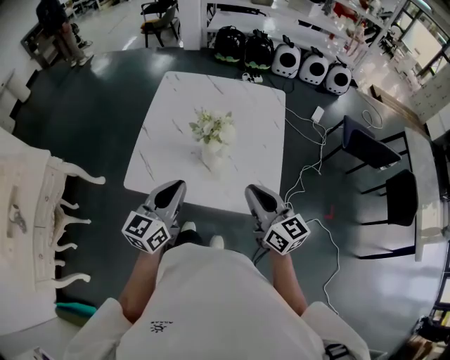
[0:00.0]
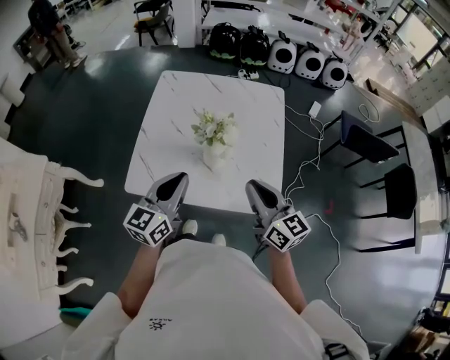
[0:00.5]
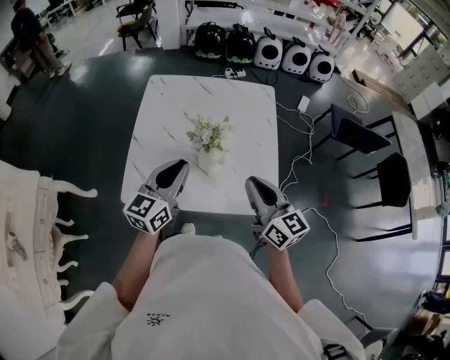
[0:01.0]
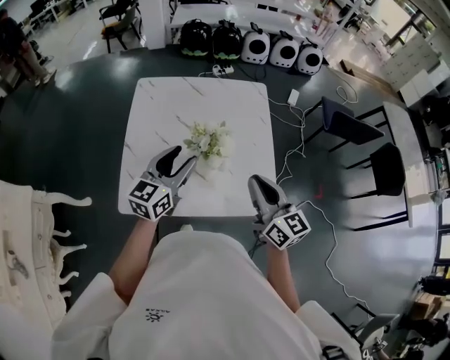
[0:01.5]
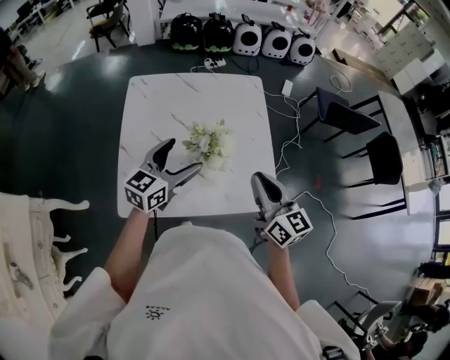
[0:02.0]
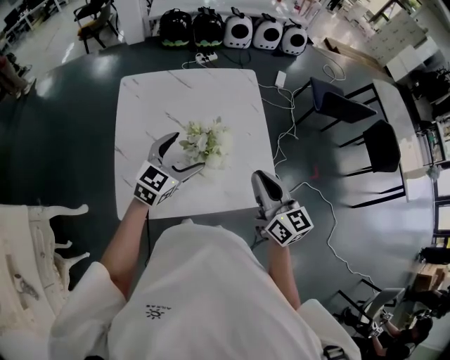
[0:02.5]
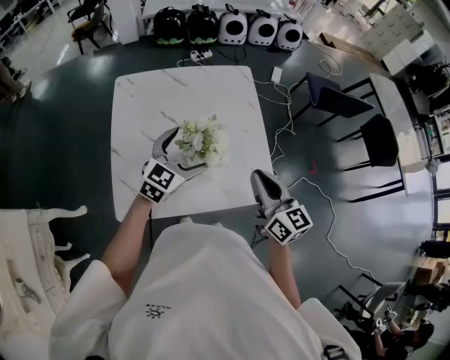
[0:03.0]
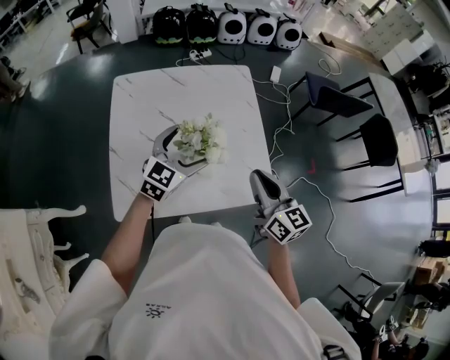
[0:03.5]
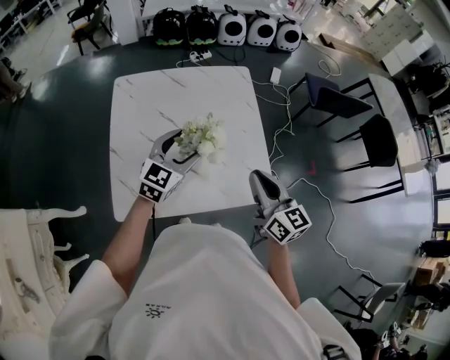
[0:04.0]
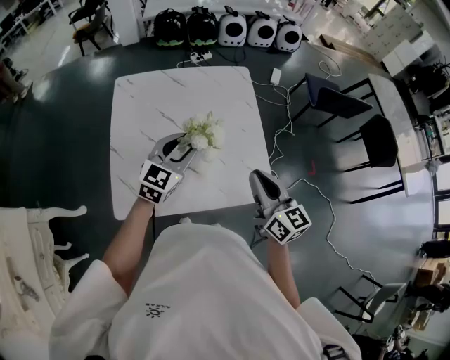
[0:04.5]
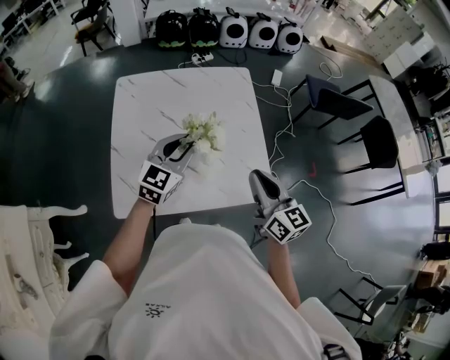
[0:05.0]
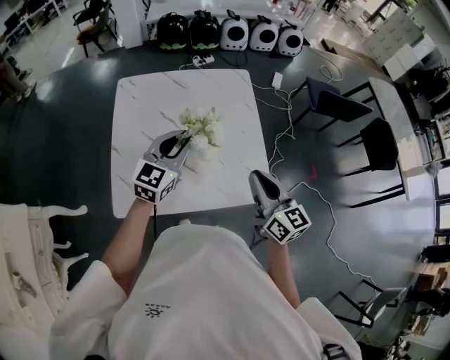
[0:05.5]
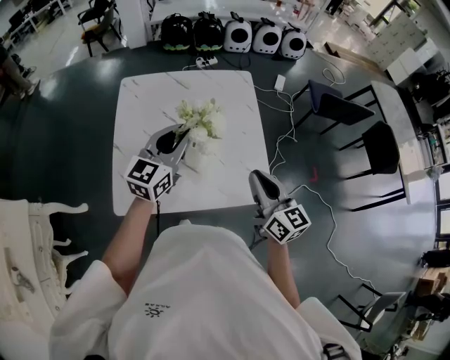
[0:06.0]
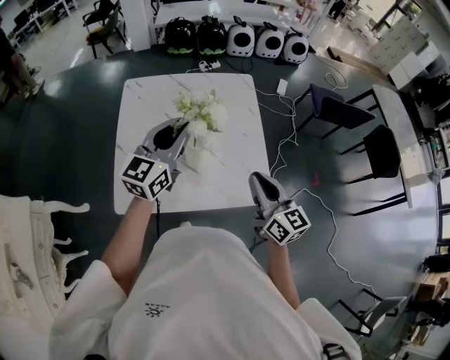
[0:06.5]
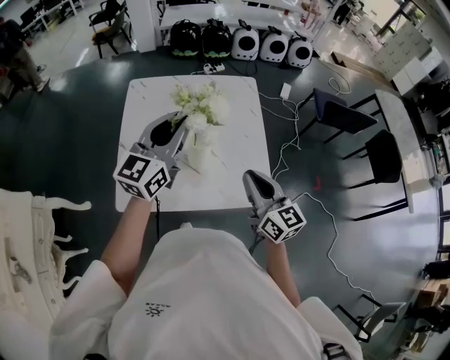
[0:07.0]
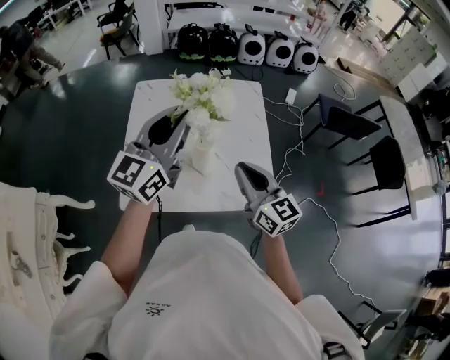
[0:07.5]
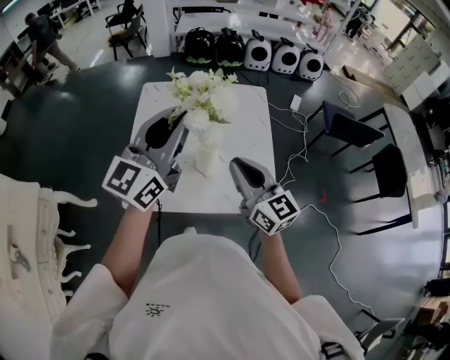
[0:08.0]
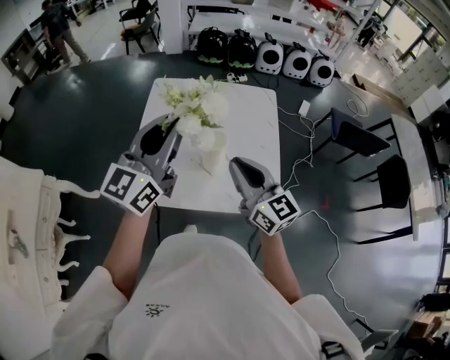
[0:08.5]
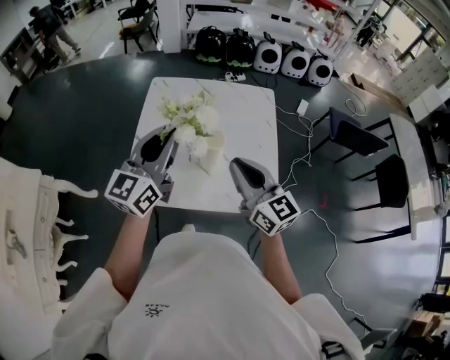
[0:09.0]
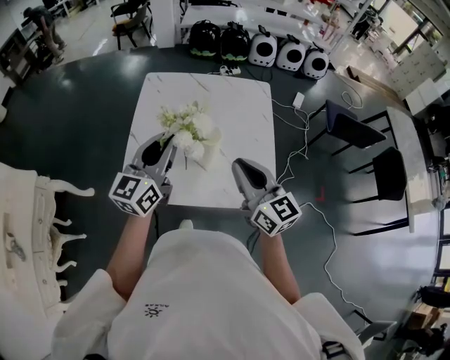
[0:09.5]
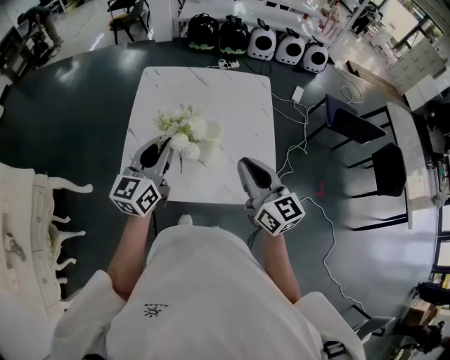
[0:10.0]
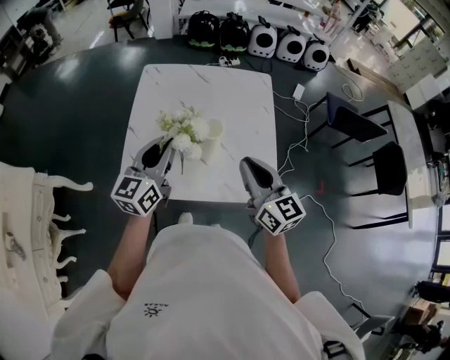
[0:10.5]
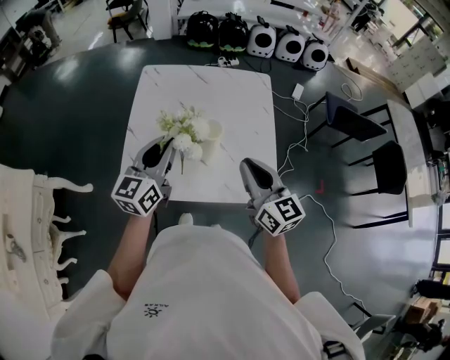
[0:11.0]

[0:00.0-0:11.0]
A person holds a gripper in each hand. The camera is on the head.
0:00.0 to 0:02.0: The right gripper travels forward by approximately 5 cm, and changes its angle by approximately 20 degrees. The left gripper travels forward by roughly 15 cm, turns by some 30 degrees, and opens its fingers.
0:02.0 to 0:03.5: The left gripper changes place by about 5 cm, and turns by about 20 degrees.
0:03.5 to 0:05.5: The left gripper ends up about 5 cm from where it was, and closes.
0:05.5 to 0:07.5: The right gripper moves to the left, about 5 cm; the left gripper travels upward by approximately 15 cm, and rotates approximately 20 degrees.
0:07.5 to 0:09.0: The left gripper heads to the left, covering roughly 5 cm.
0:09.0 to 0:11.0: The right gripper ends up roughly 5 cm from where it was, while the left gripper moves downward, some 10 cm.

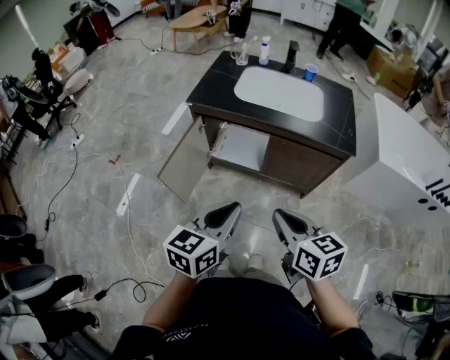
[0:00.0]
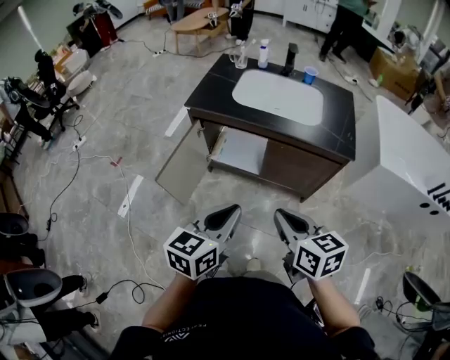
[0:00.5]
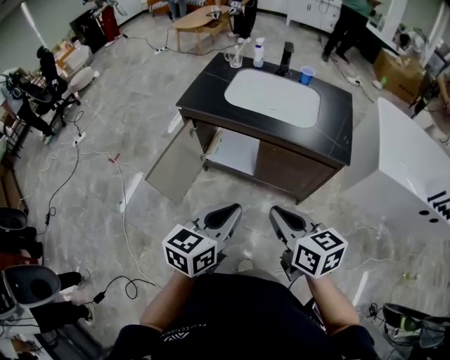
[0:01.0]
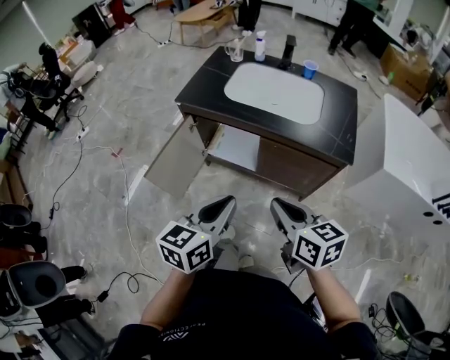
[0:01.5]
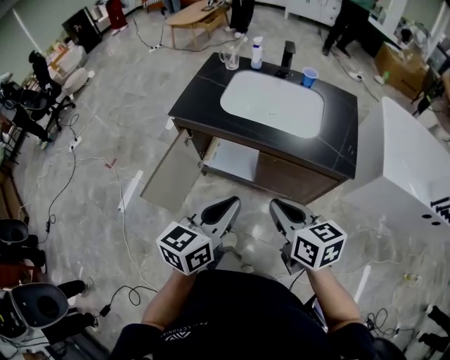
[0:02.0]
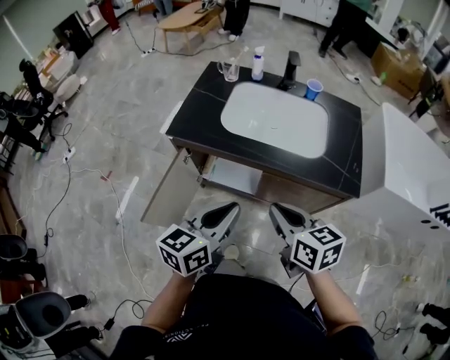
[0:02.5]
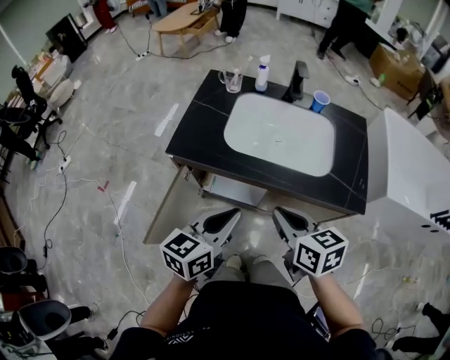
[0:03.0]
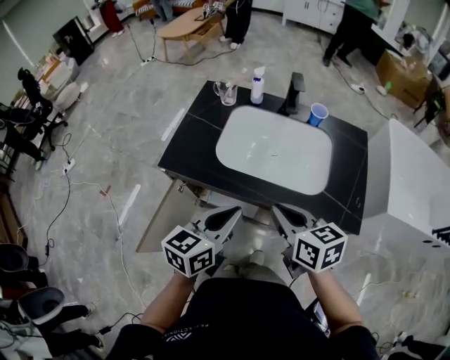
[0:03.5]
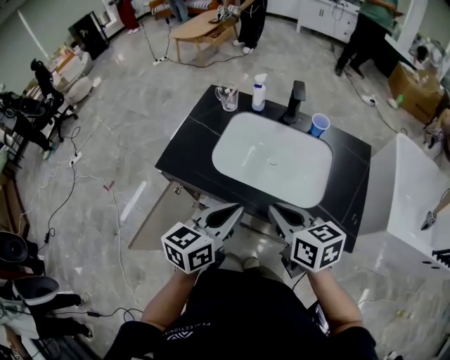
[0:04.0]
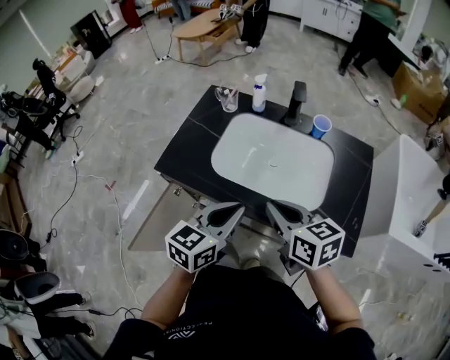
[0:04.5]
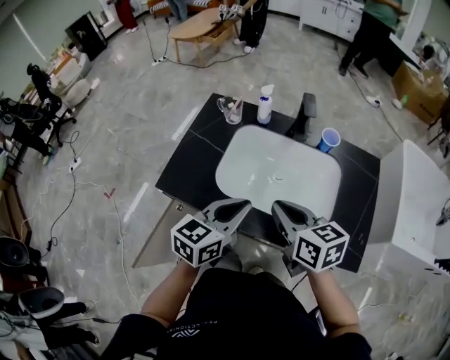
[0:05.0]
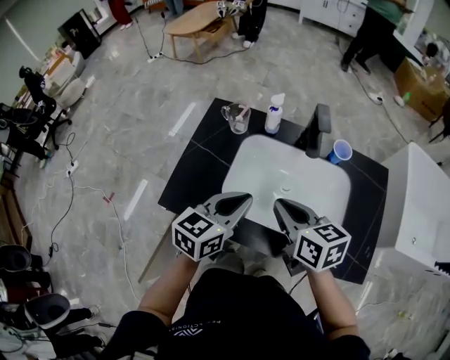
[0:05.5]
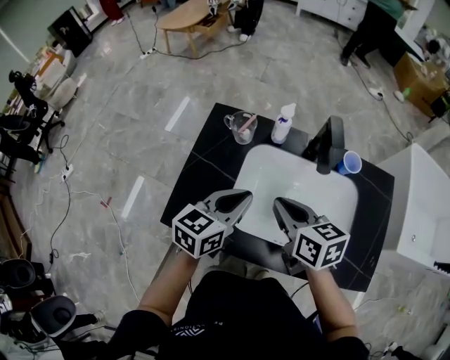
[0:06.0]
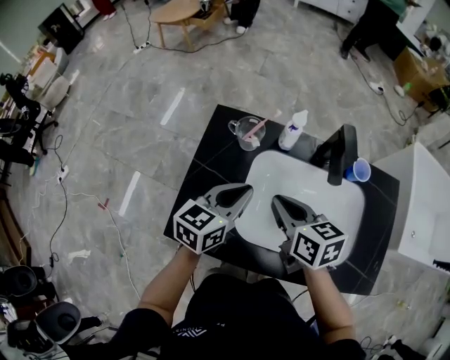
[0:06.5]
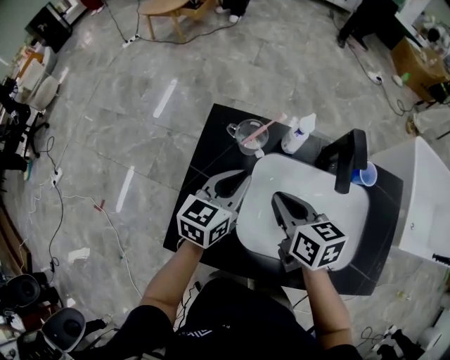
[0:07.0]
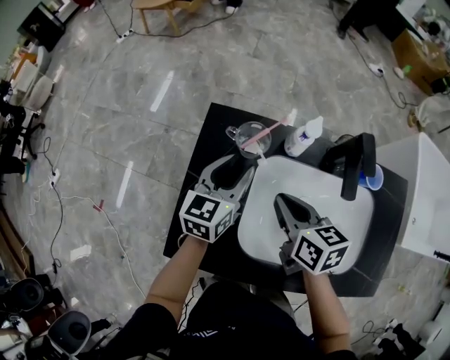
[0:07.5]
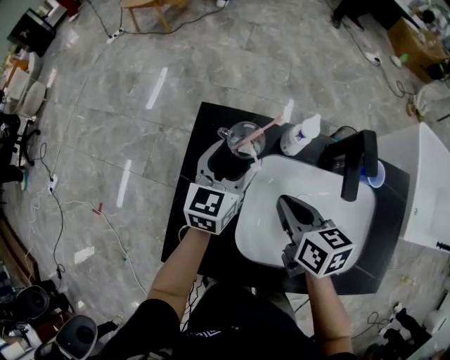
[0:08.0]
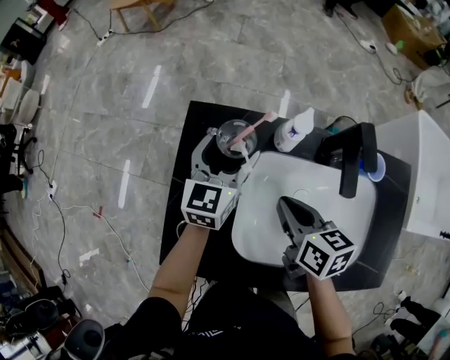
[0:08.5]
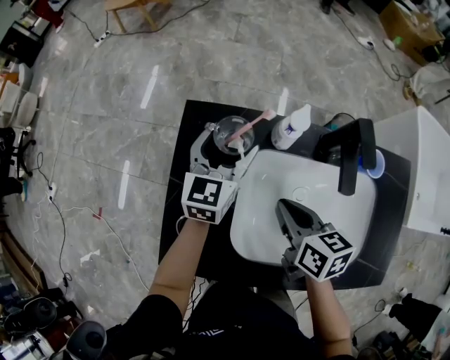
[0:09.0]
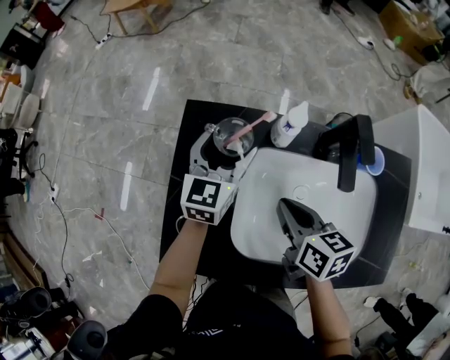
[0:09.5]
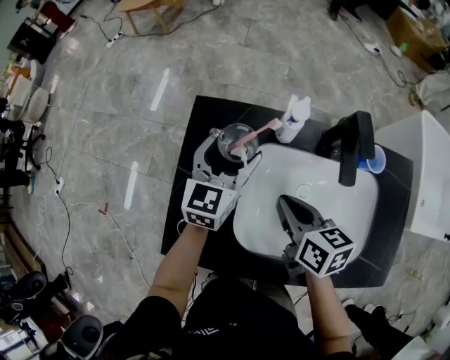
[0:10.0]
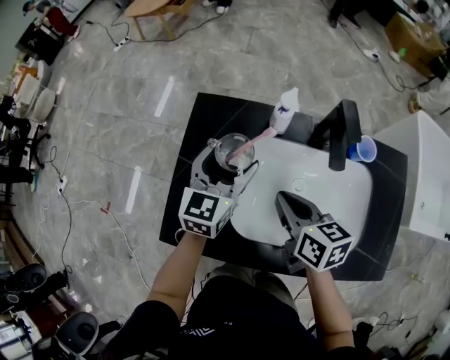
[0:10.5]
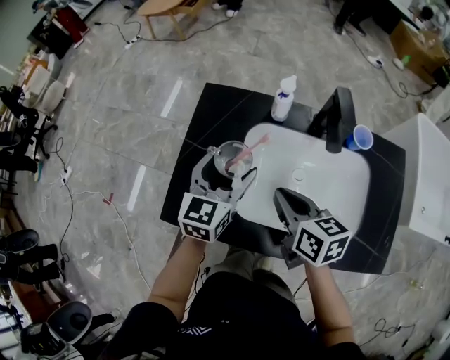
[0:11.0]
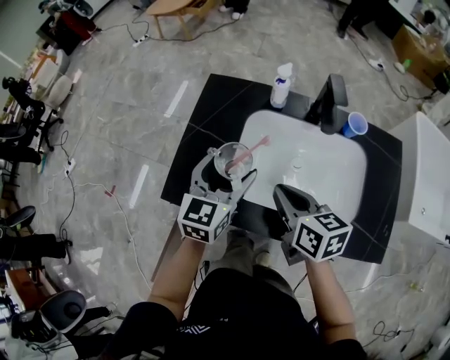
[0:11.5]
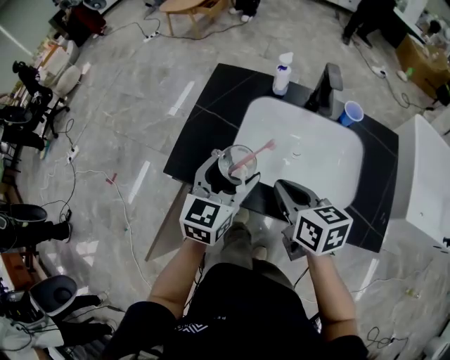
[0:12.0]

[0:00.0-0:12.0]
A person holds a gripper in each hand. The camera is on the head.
0:00.0 to 0:02.0: The grippers both shift forward and to the right by some 15 cm.
0:02.0 to 0:04.0: Both grippers travel together forward, roughly 25 cm.
0:04.0 to 0:06.0: Both grippers travel together forward, approximately 20 cm.
0:06.0 to 0:08.0: The right gripper moves forward and downward, some 10 cm, while the left gripper travels forward by approximately 20 cm, and opens its fingers.
0:08.0 to 0:10.0: The grippers make only small movements.
0:10.0 to 0:12.0: The right gripper moves backward, about 20 cm; the left gripper travels backward by approximately 25 cm.

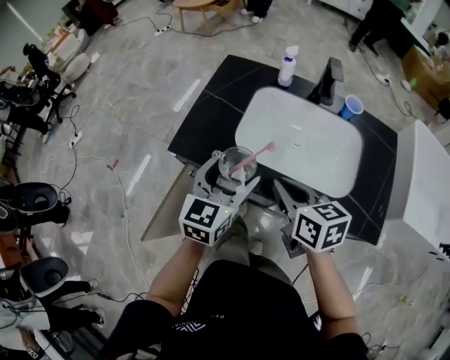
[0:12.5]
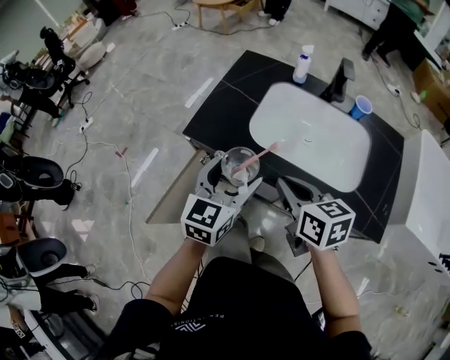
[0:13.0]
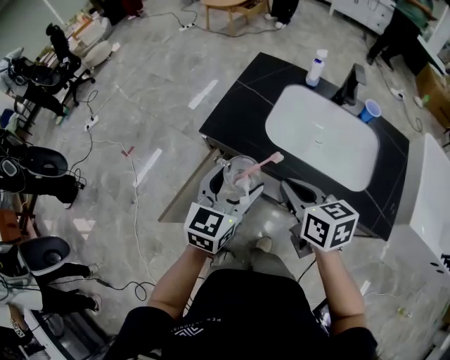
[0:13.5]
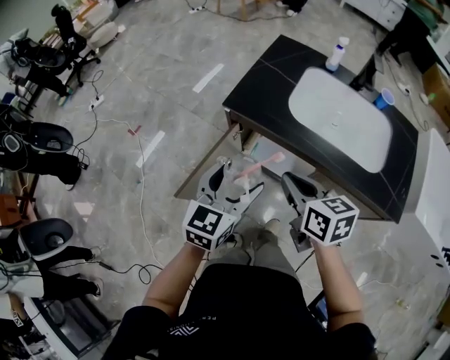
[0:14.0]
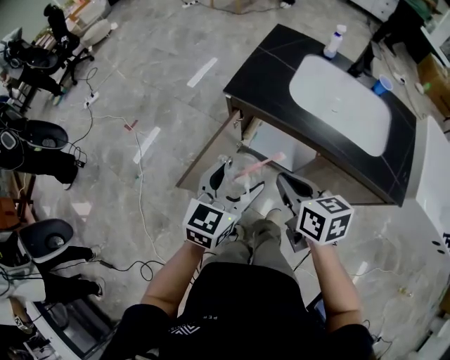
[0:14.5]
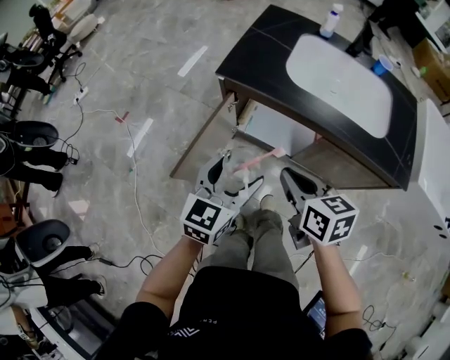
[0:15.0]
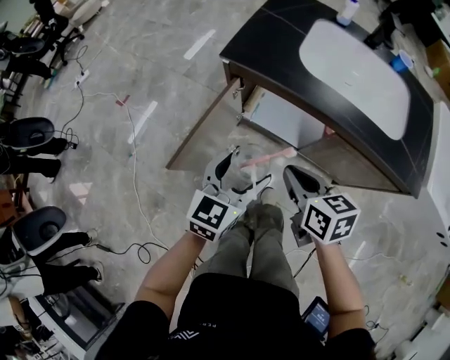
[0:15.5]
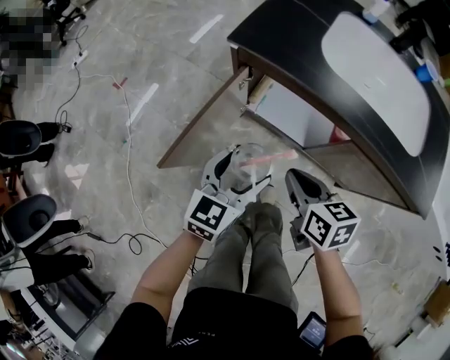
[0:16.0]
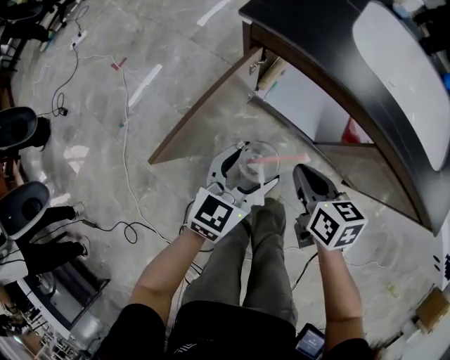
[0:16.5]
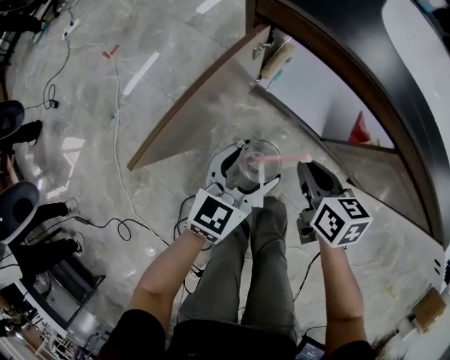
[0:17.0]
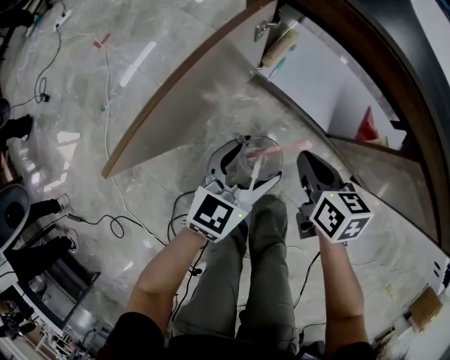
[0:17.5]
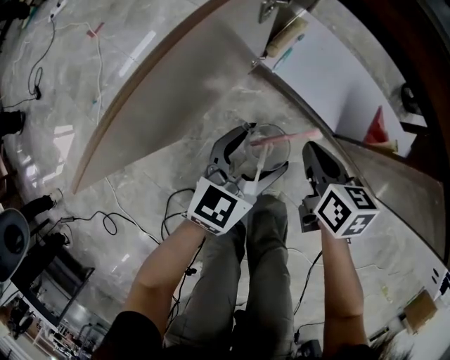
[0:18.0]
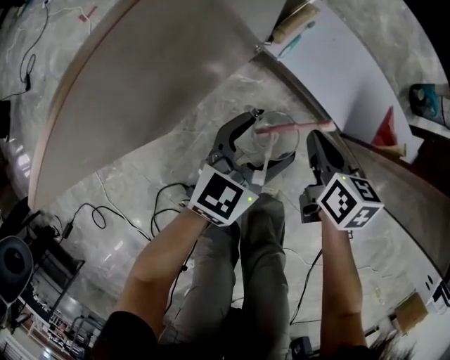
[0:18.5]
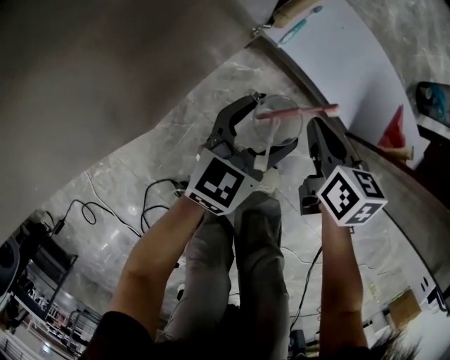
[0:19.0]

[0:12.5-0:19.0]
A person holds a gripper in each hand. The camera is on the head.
0:12.5 to 0:14.5: The right gripper goes roughly 20 cm to the left and backward. The left gripper moves backward and to the left, approximately 25 cm.
0:14.5 to 0:17.0: Both grippers move downward, about 30 cm.
0:17.0 to 0:19.0: Both grippers move downward, about 20 cm.
